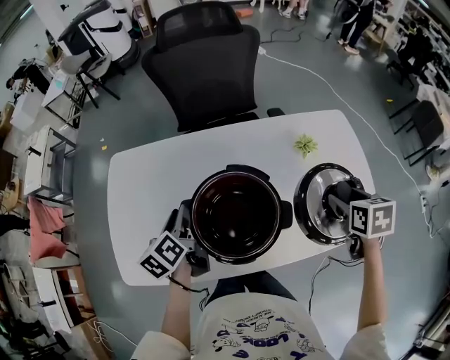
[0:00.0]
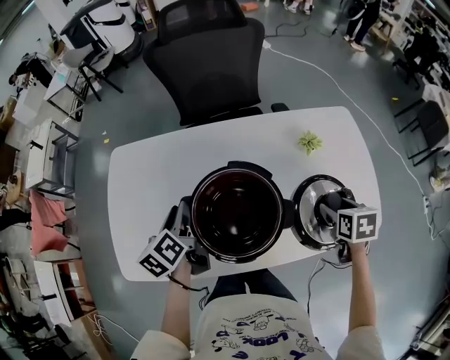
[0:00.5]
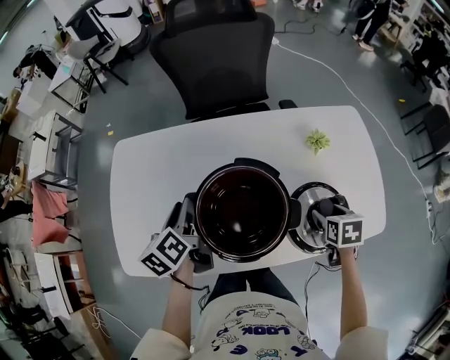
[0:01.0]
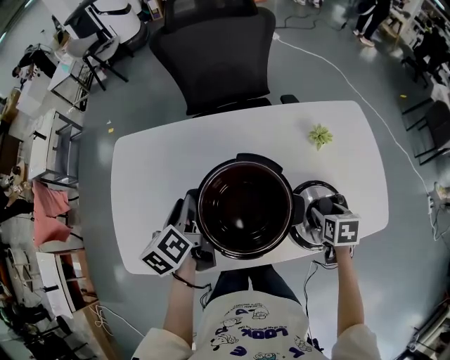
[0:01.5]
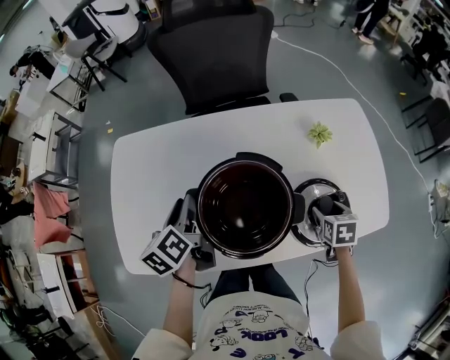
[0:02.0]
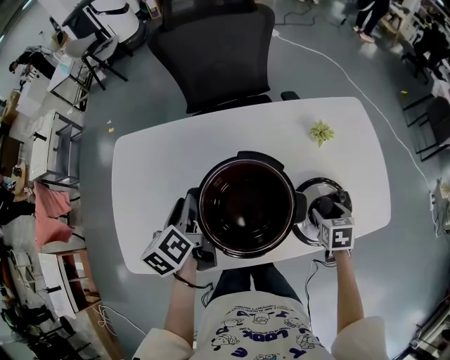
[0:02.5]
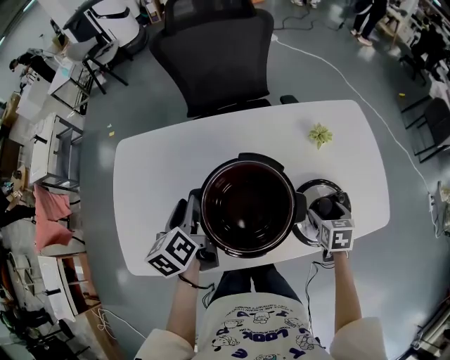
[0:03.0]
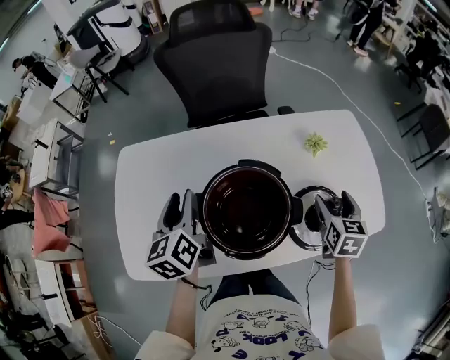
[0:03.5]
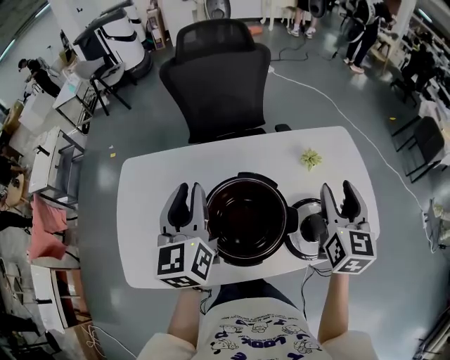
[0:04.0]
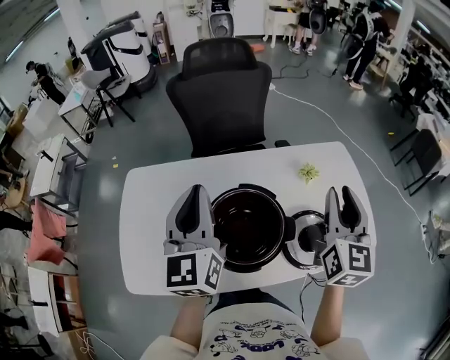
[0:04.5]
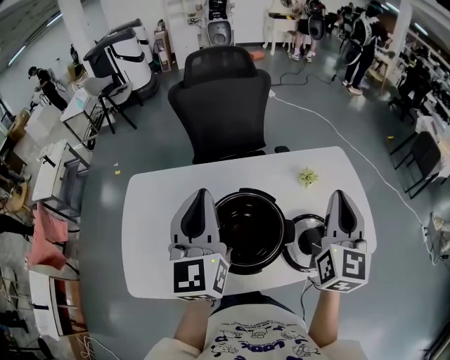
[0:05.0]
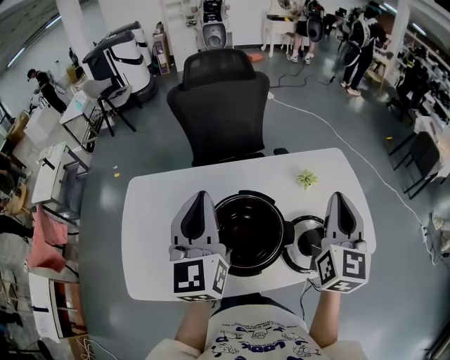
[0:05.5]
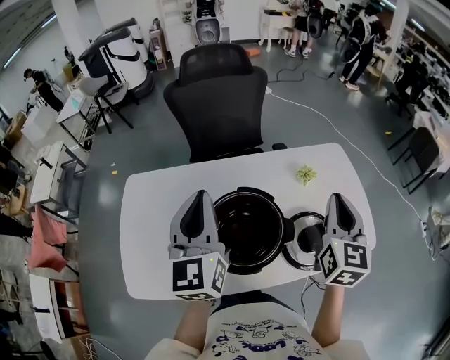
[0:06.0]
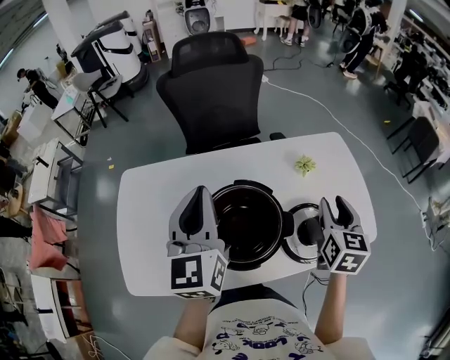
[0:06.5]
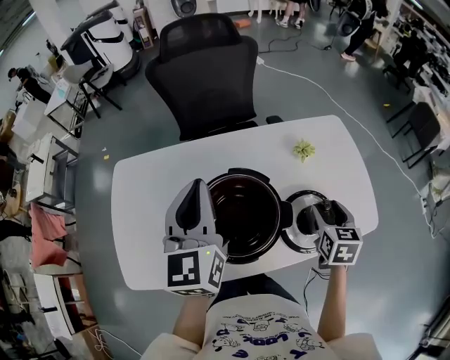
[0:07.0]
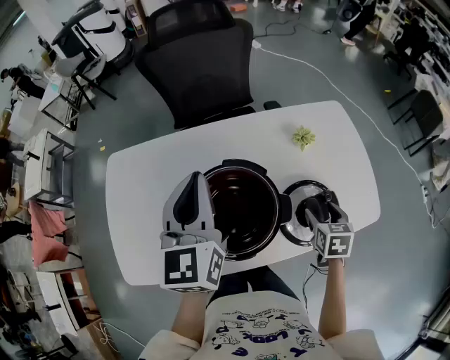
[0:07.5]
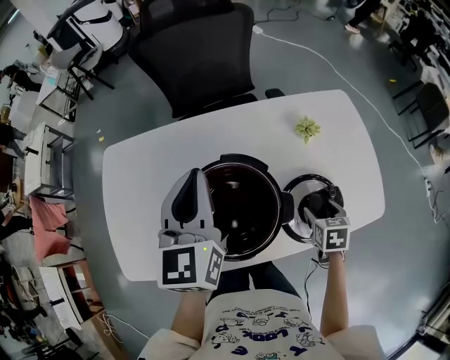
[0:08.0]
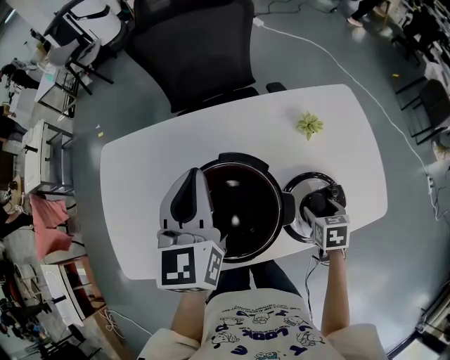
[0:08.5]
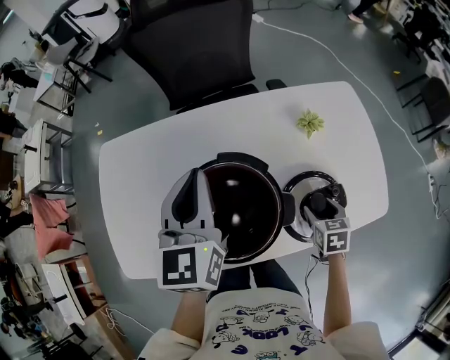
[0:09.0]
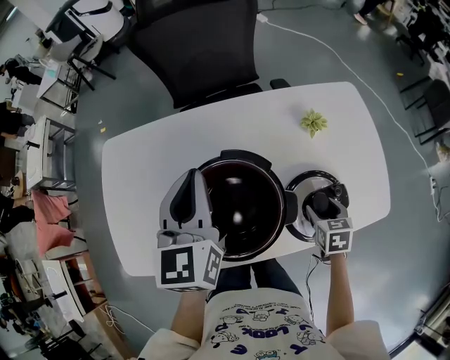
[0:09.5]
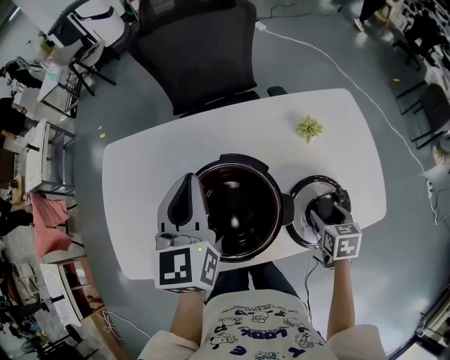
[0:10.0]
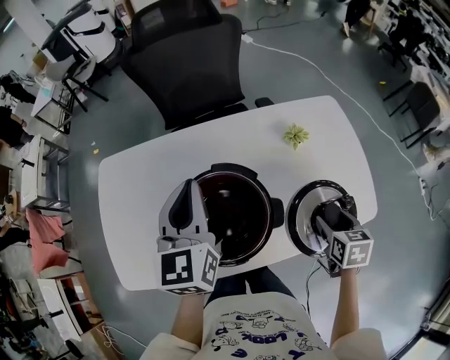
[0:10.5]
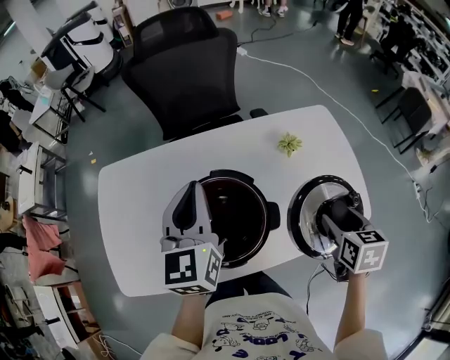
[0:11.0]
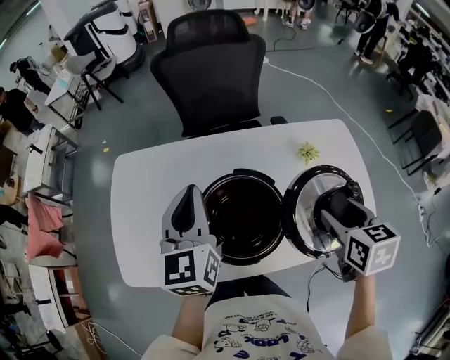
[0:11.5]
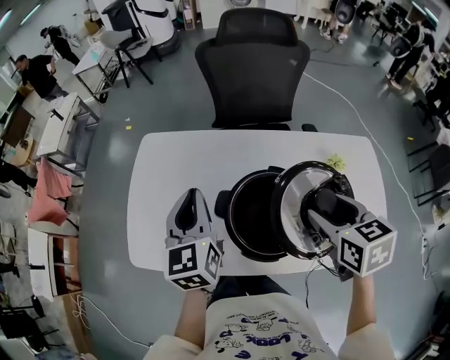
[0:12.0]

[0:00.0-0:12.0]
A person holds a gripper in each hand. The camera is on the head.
0:00.0 to 0:02.0: The right gripper heads downward, covering roughly 15 cm.
0:02.0 to 0:04.0: The left gripper goes roughly 15 cm upward, and rotates roughly 40 degrees. Meanwhile the right gripper moves upward, approximately 30 cm, and angles its fingers upward, by roughly 50 degrees.
0:04.0 to 0:06.0: The left gripper is displaced upward by some 5 cm, and closes. The right gripper closes.
0:06.0 to 0:08.0: The left gripper moves downward and forward, about 10 cm; the right gripper travels downward by some 30 cm, angles its fingers downward, by about 50 degrees, and opens its fingers.
0:08.0 to 0:10.0: The grippers move only a little.
0:10.0 to 0:12.0: The right gripper is displaced upward by about 25 cm, and changes its angle by some 30 degrees, while the left gripper moves roughly 15 cm.

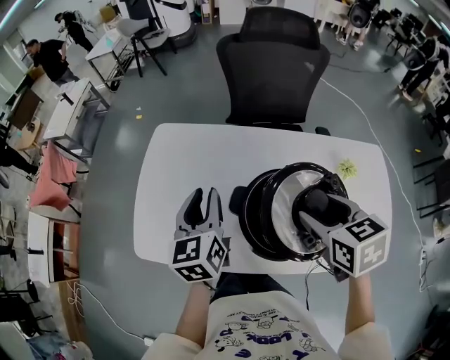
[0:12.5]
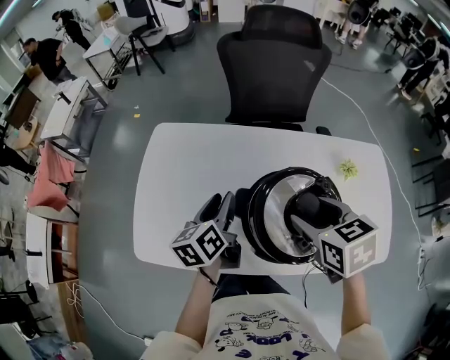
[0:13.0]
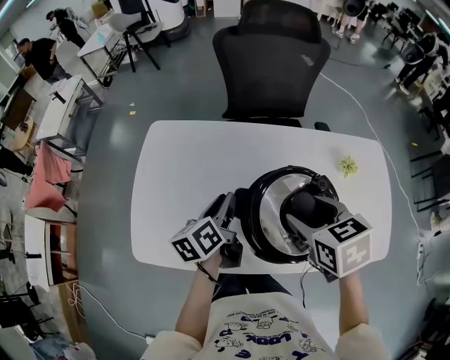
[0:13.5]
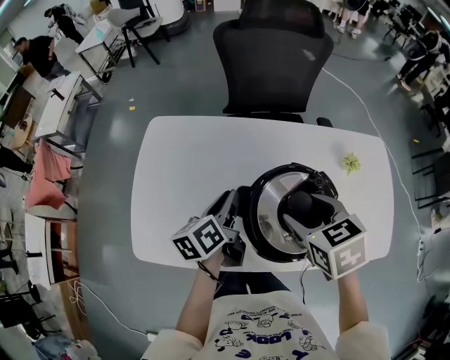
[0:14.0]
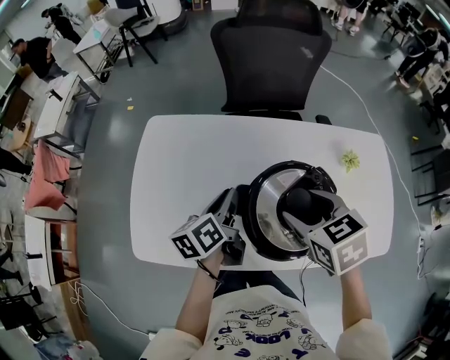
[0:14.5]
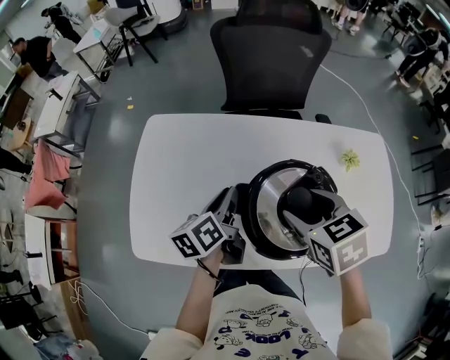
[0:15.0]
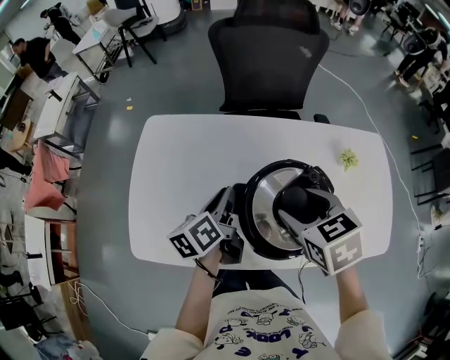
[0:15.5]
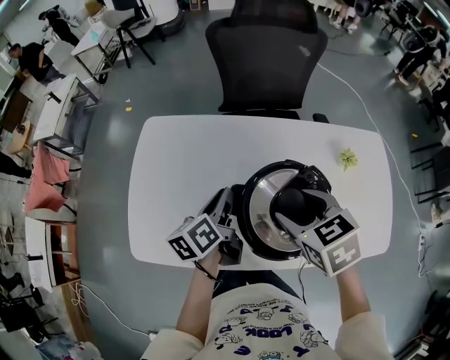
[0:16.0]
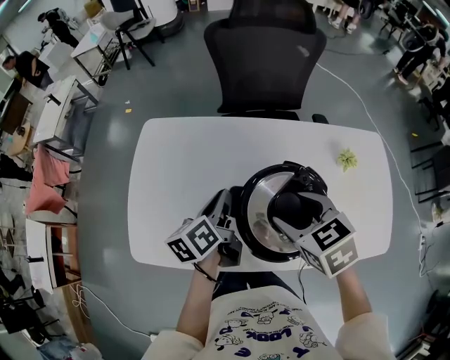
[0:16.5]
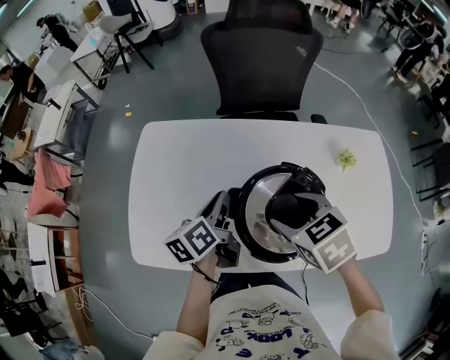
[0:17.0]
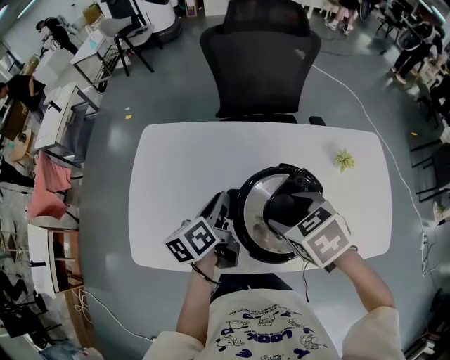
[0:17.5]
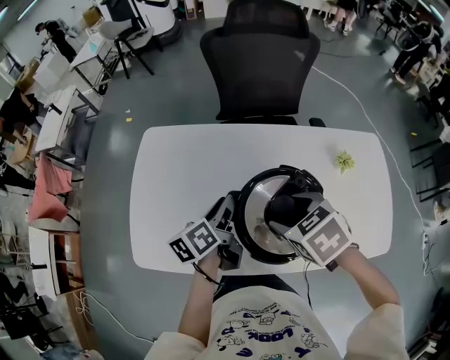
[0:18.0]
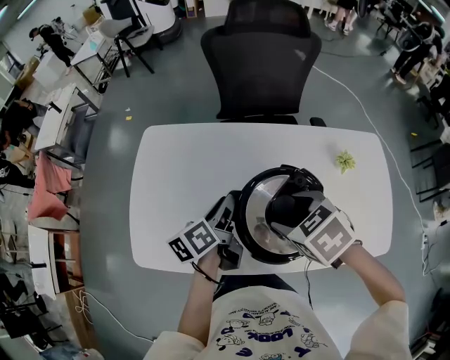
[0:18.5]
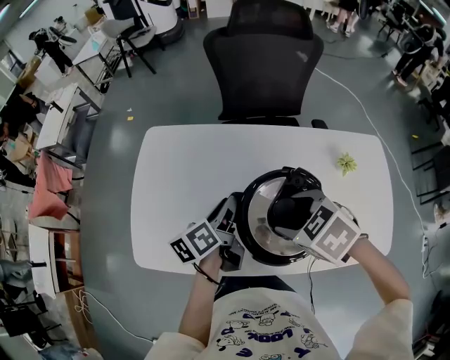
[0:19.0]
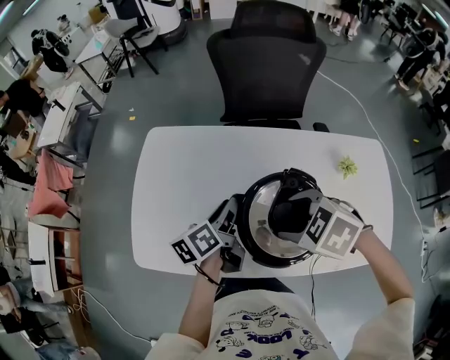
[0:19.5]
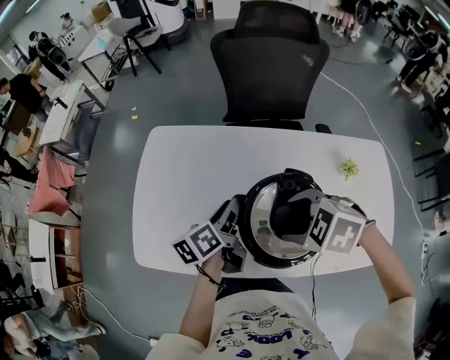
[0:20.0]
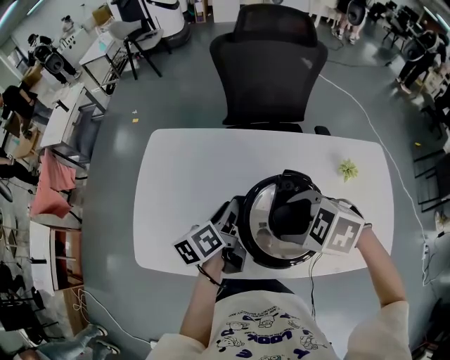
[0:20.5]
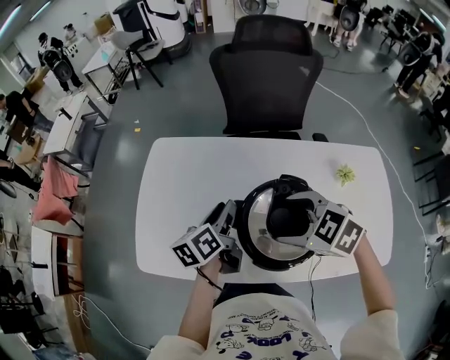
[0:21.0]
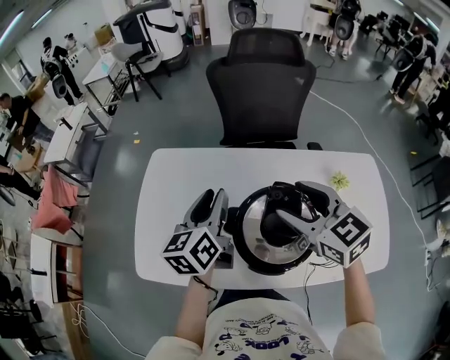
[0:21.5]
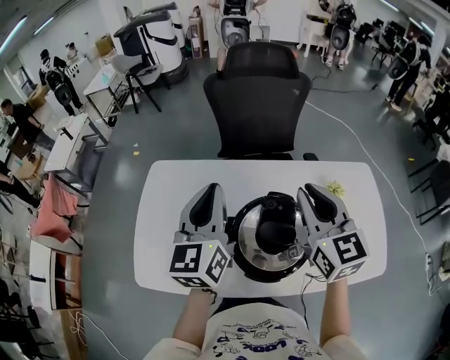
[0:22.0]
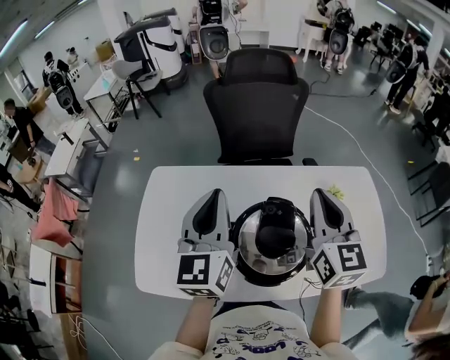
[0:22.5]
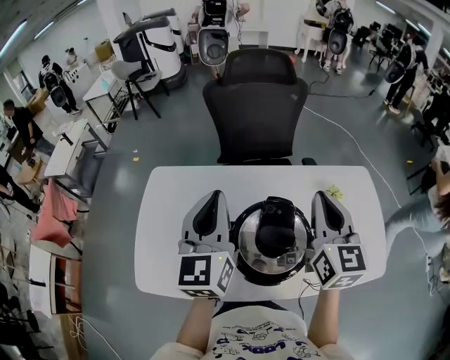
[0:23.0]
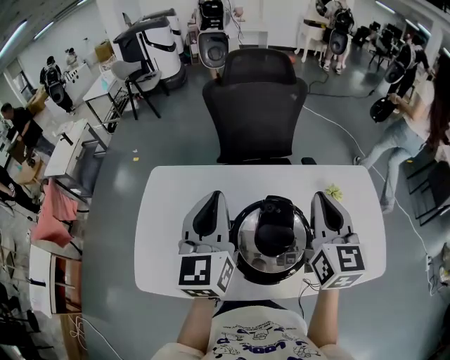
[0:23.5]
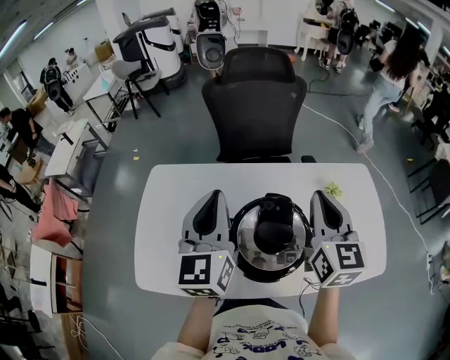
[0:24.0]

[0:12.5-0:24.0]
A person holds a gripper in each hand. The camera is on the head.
0:12.5 to 0:14.5: The left gripper goes about 10 cm downward and to the right, and turns by roughly 40 degrees. The right gripper moves approximately 5 cm.
0:14.5 to 0:18.5: There are only small adjustments of the grippers.
0:18.5 to 0:20.0: The right gripper turns by roughly 30 degrees.
0:20.0 to 0:22.0: The right gripper travels upward and to the right by roughly 20 cm, points its fingers about 60 degrees further upward, and closes up, while the left gripper goes about 20 cm upward, rolls clockwise, seen from behind, by about 50 degrees, and closes up.
0:22.0 to 0:24.0: There are only small adjustments of the grippers.

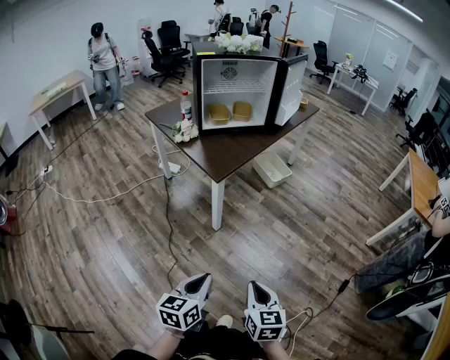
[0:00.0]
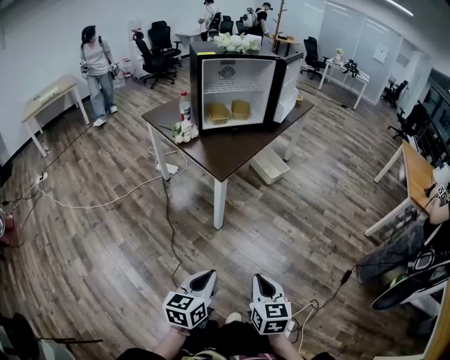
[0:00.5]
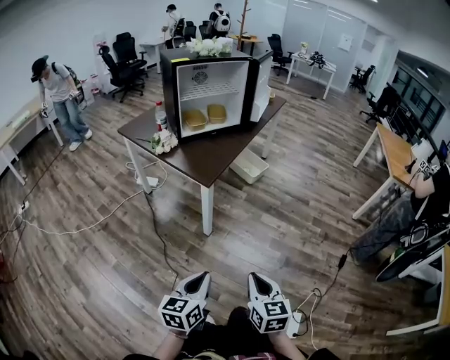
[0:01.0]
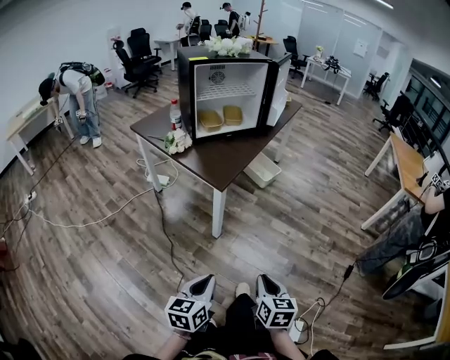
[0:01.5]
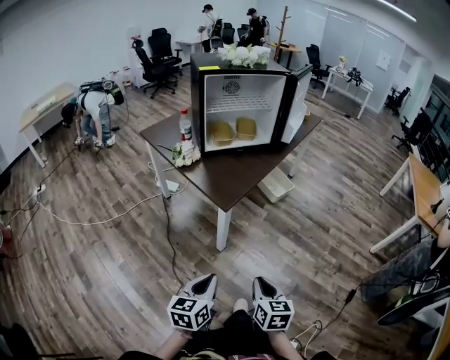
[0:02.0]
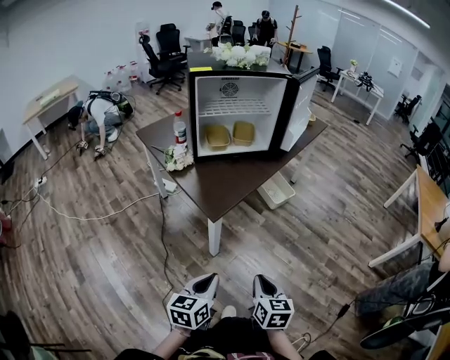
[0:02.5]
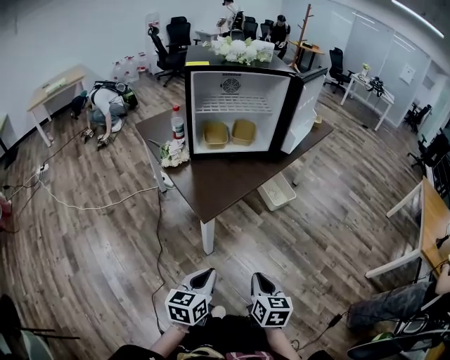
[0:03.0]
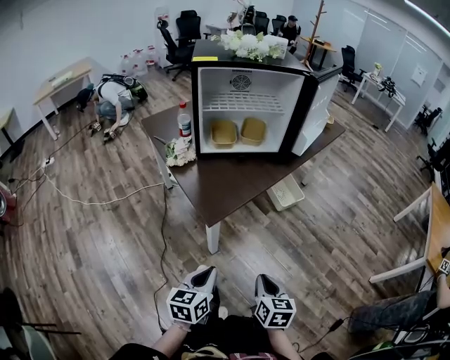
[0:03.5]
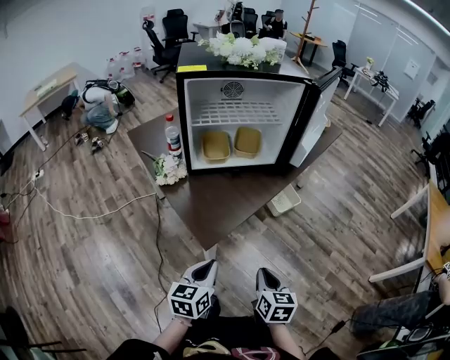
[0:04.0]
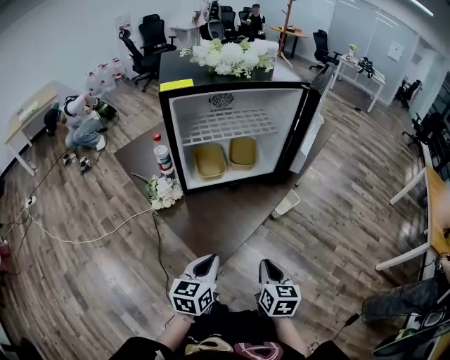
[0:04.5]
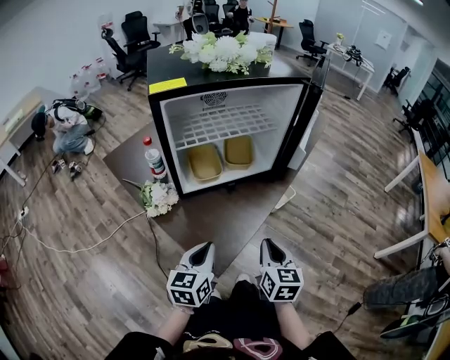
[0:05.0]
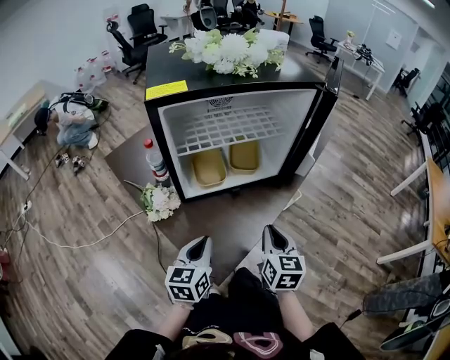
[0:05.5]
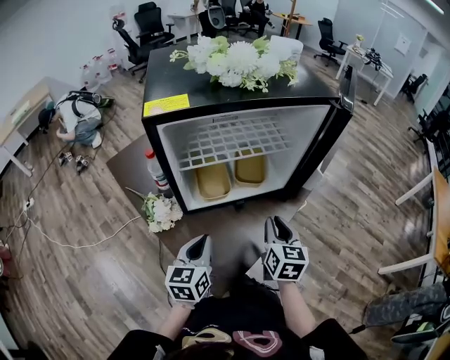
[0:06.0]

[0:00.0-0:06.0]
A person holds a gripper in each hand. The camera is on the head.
0:00.0 to 0:02.0: Both grippers travel together forward and to the left, about 15 cm.
0:02.0 to 0:04.0: The two grippers go approximately 25 cm forward.
0:04.0 to 0:06.0: The left gripper travels forward and to the left by roughly 25 cm, while the right gripper shifts some 30 cm forward.
